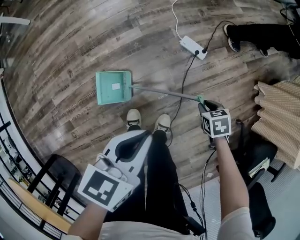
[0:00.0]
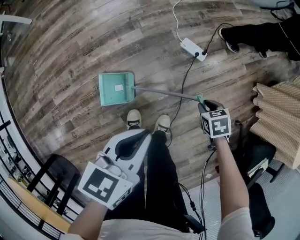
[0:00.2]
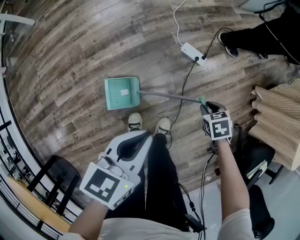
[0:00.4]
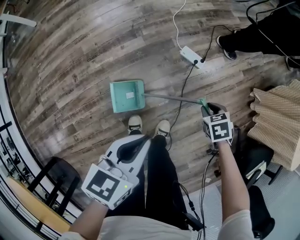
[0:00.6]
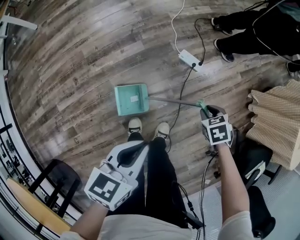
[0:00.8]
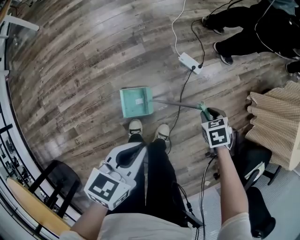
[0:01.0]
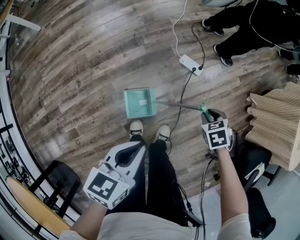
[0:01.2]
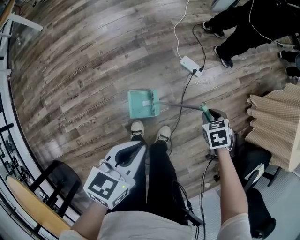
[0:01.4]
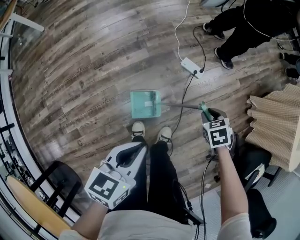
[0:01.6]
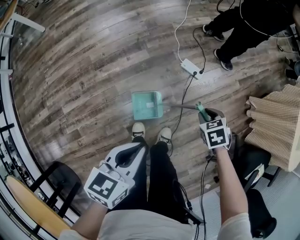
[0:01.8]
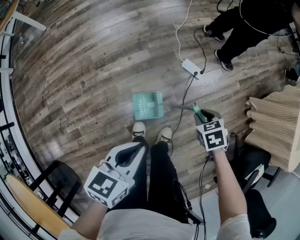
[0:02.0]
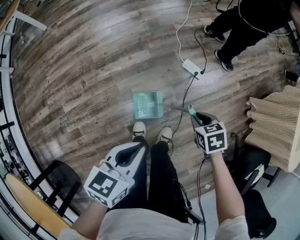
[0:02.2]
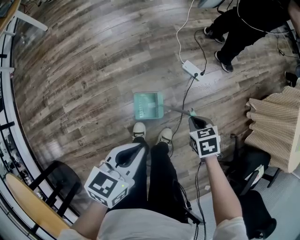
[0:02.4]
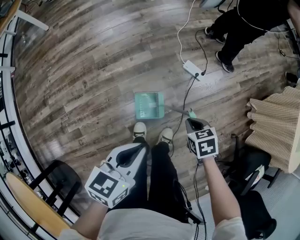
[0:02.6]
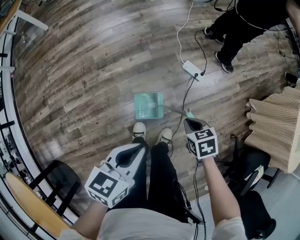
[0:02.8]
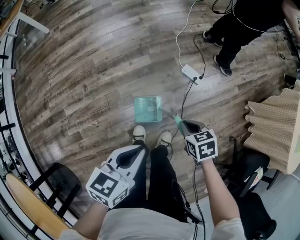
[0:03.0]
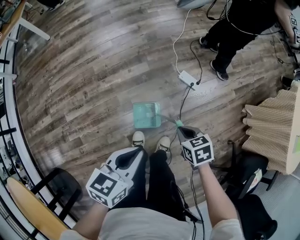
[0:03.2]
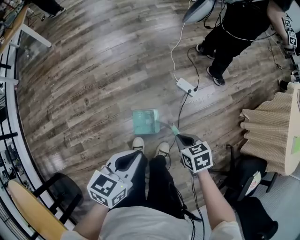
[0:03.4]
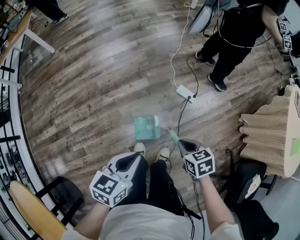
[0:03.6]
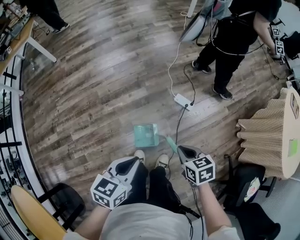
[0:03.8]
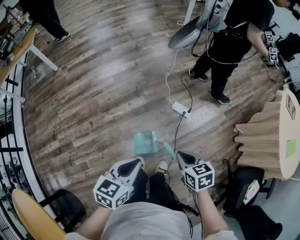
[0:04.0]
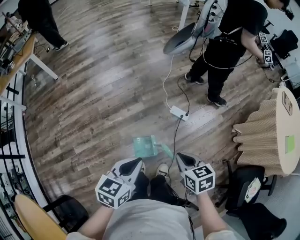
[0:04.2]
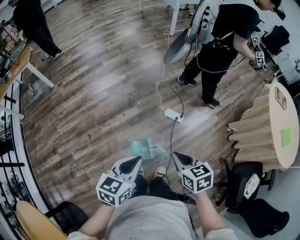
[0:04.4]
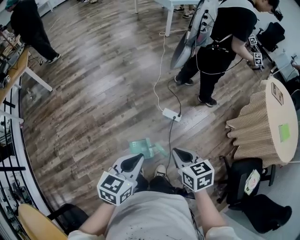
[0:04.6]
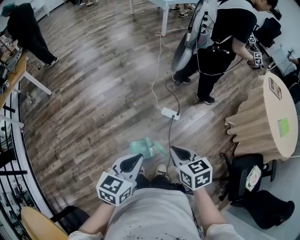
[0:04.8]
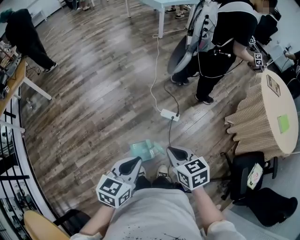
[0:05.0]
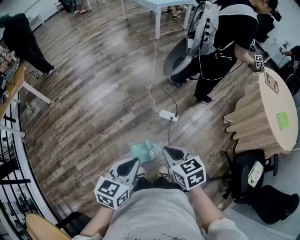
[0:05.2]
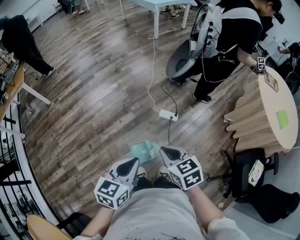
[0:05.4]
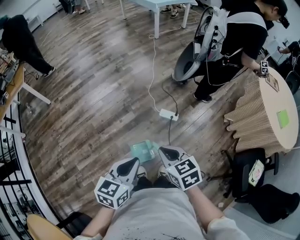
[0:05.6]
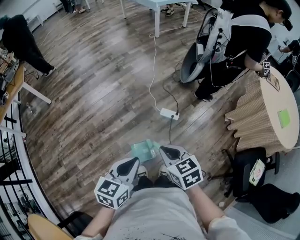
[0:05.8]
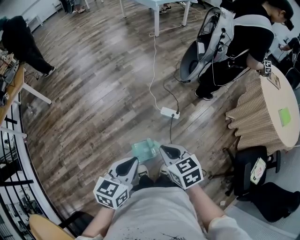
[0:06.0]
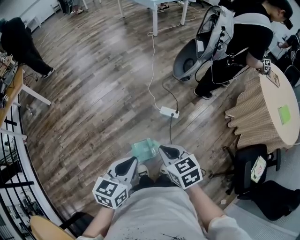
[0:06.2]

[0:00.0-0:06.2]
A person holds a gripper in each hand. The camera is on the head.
0:00.0 to 0:01.6: The left gripper ends up about 10 cm from where it was. The right gripper travels upward by about 15 cm.
0:01.6 to 0:03.2: The right gripper shifts roughly 15 cm to the left, backward and upward, changes its angle by some 20 degrees, and closes up.
0:03.2 to 0:04.6: The left gripper travels upward by approximately 15 cm, while the right gripper goes approximately 25 cm upward, and turns by some 20 degrees.
0:04.6 to 0:06.2: The grippers move only a little.

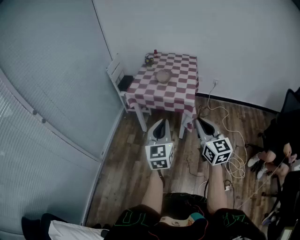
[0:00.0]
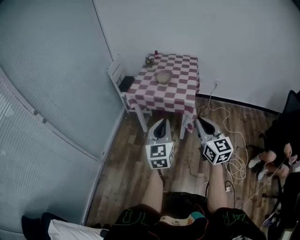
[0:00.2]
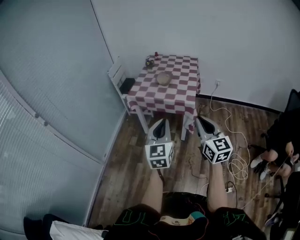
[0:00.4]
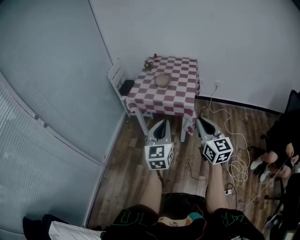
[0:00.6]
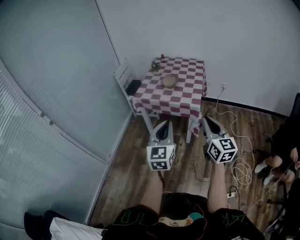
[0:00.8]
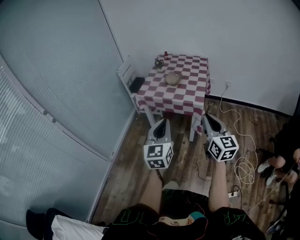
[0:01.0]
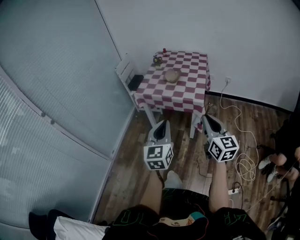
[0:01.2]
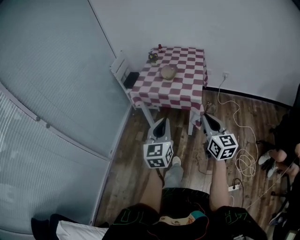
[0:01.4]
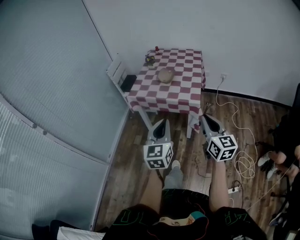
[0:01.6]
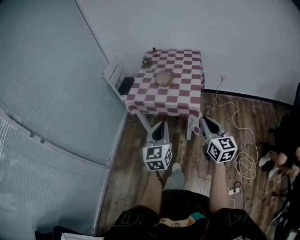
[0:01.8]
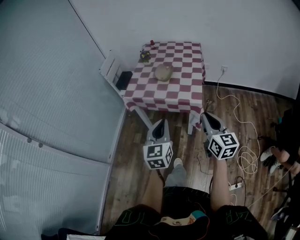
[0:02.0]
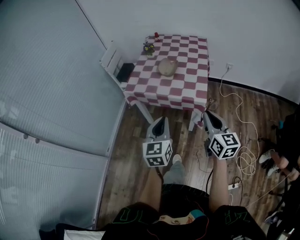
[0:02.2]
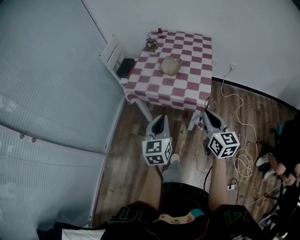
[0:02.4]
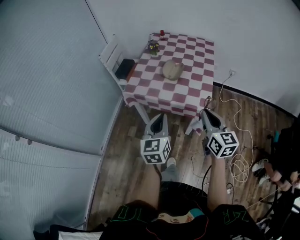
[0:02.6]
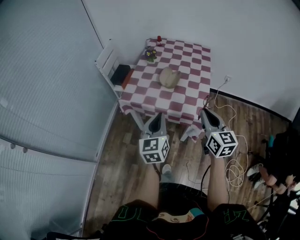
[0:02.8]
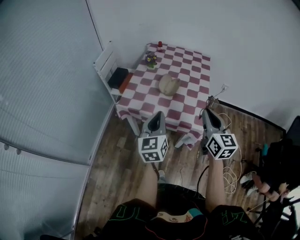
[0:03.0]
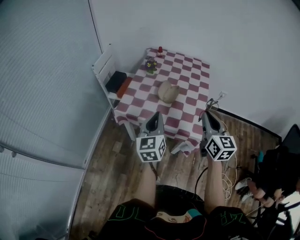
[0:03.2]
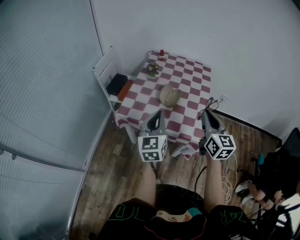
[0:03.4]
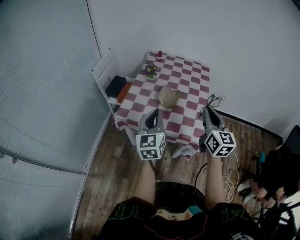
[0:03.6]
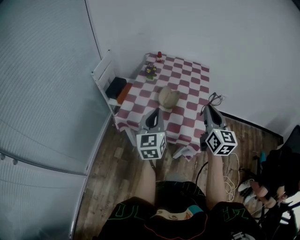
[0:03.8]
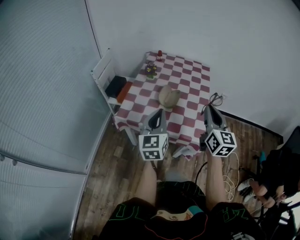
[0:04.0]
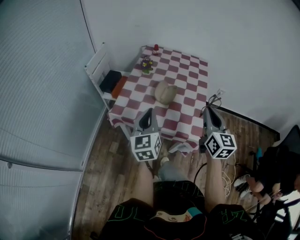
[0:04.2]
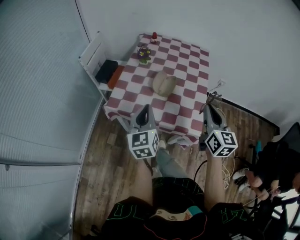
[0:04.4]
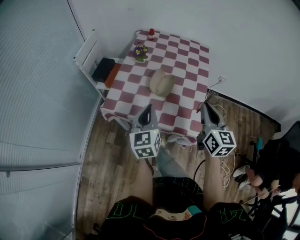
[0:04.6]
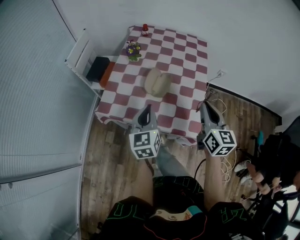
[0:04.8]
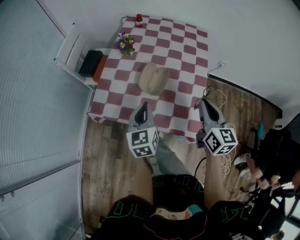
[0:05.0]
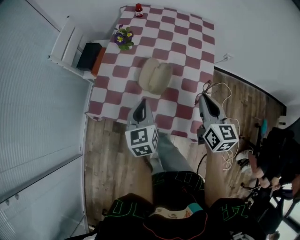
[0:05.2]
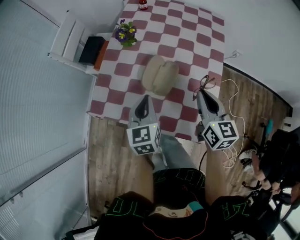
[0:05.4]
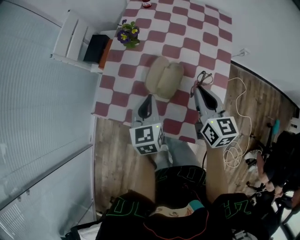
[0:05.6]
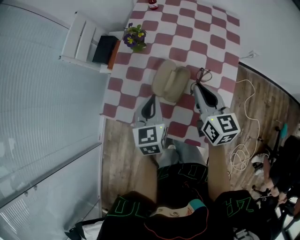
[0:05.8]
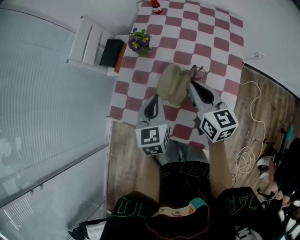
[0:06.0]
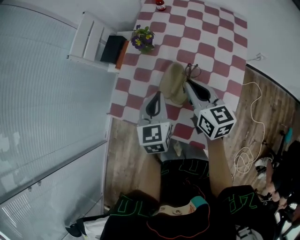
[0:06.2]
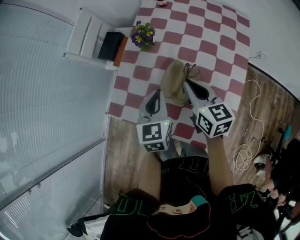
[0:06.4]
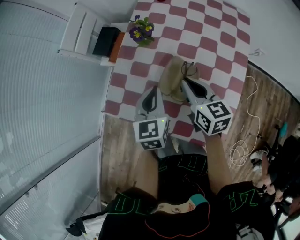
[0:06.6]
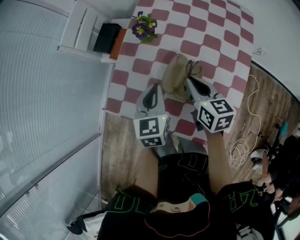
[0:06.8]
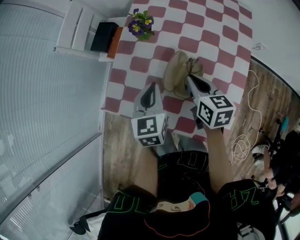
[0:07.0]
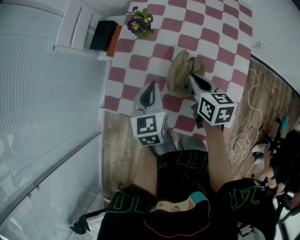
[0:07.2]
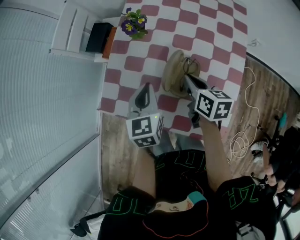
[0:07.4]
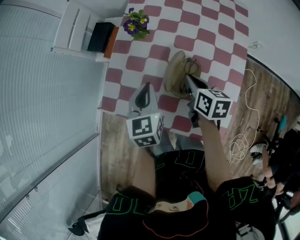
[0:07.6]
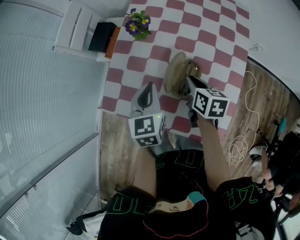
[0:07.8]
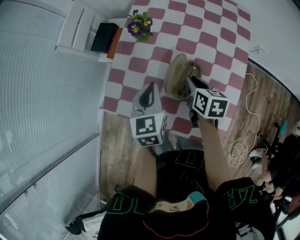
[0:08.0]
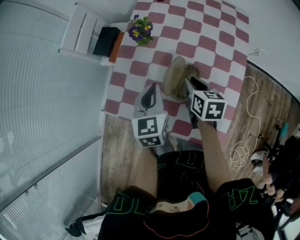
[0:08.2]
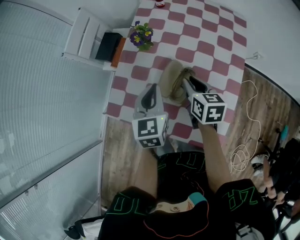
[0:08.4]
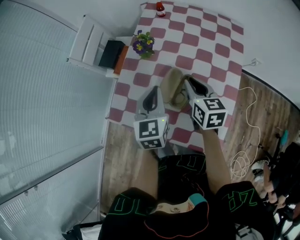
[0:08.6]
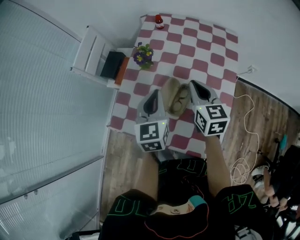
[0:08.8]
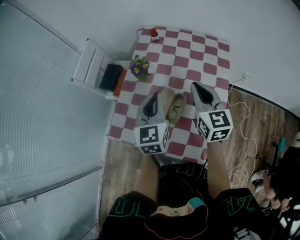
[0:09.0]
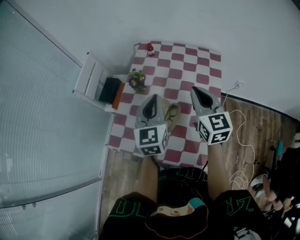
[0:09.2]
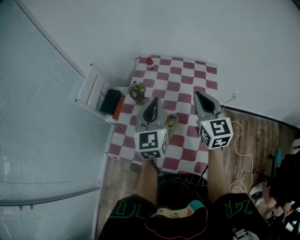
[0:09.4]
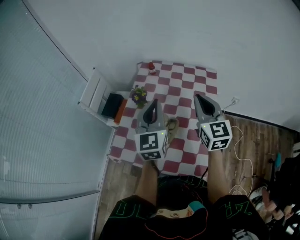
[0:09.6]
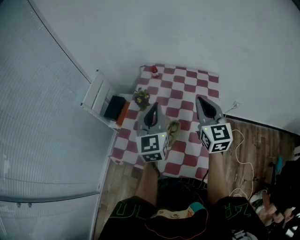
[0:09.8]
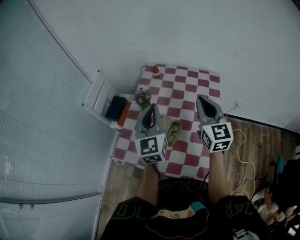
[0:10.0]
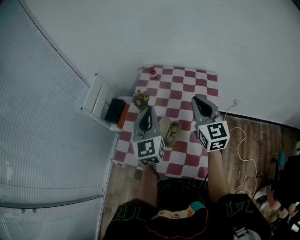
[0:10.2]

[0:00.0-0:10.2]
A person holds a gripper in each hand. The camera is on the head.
0:00.0 to 0:01.4: The right gripper moves forward, approximately 5 cm.
0:01.4 to 0:03.0: The two grippers go roughly 30 cm forward.
0:03.0 to 0:04.4: Both grippers move forward, about 10 cm.
0:04.4 to 0:05.8: Both grippers move forward and downward, roughly 20 cm. The right gripper swivels some 20 degrees; the left gripper rotates approximately 20 degrees.
0:05.8 to 0:07.2: The right gripper shifts about 10 cm downward and to the left, and rotates about 20 degrees, while the left gripper moves approximately 5 cm.
0:07.2 to 0:08.8: Both grippers move upward, about 10 cm. The right gripper changes its angle by roughly 20 degrees.
0:08.8 to 0:10.2: Both grippers move upward, approximately 15 cm. The left gripper swivels about 20 degrees. The right gripper changes its angle by about 20 degrees.

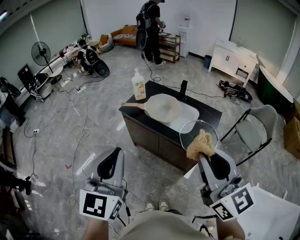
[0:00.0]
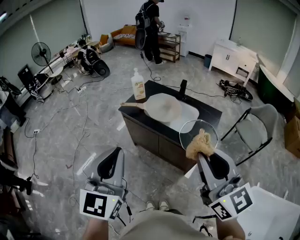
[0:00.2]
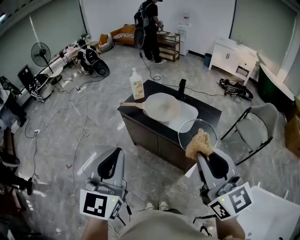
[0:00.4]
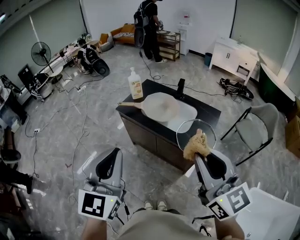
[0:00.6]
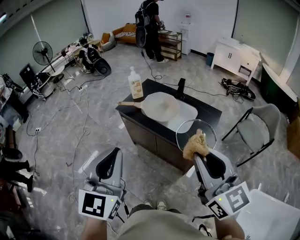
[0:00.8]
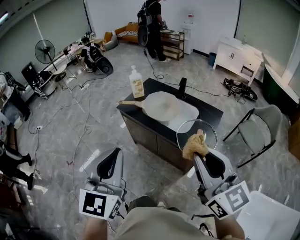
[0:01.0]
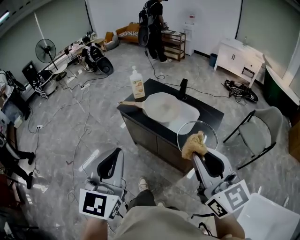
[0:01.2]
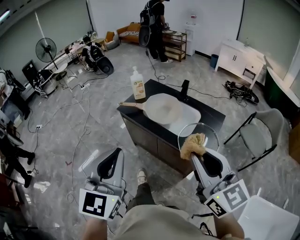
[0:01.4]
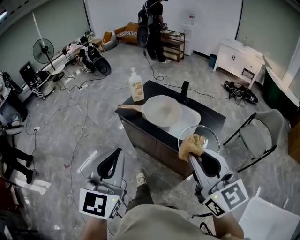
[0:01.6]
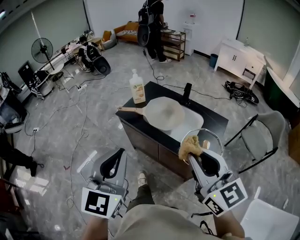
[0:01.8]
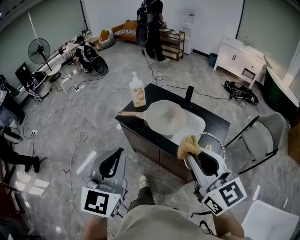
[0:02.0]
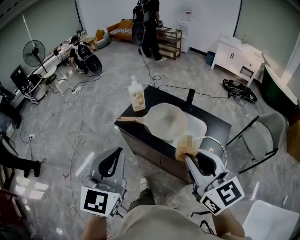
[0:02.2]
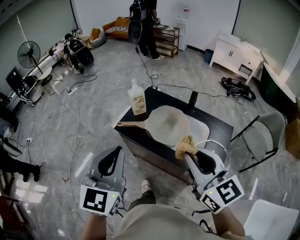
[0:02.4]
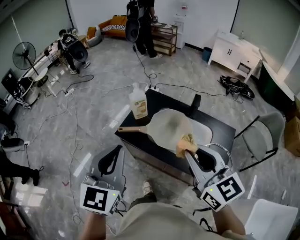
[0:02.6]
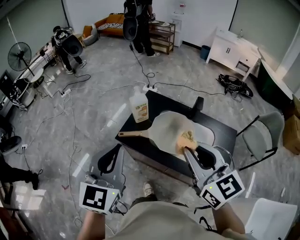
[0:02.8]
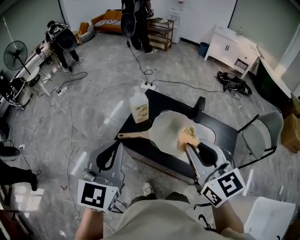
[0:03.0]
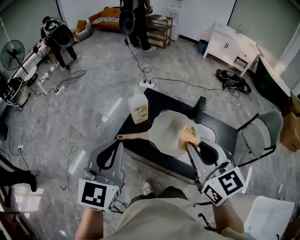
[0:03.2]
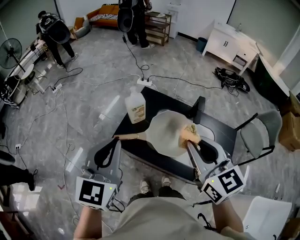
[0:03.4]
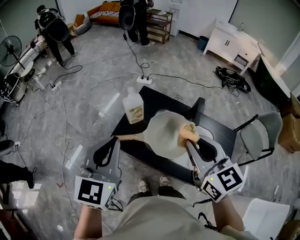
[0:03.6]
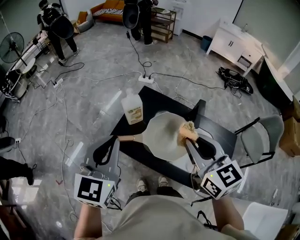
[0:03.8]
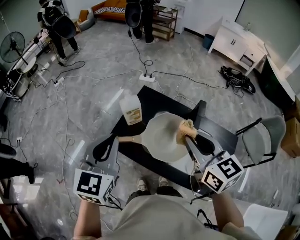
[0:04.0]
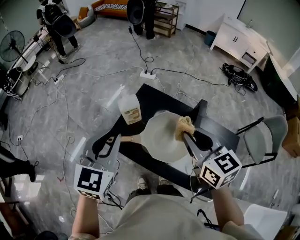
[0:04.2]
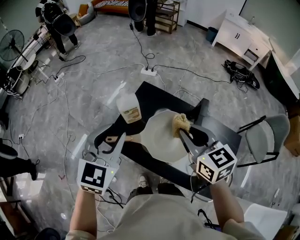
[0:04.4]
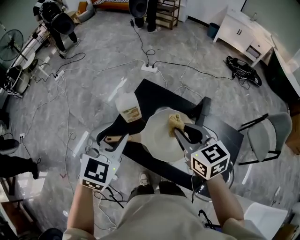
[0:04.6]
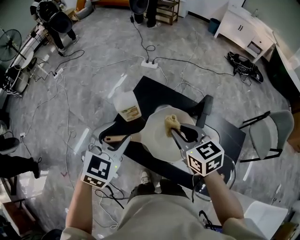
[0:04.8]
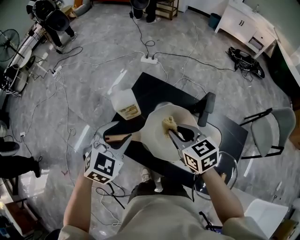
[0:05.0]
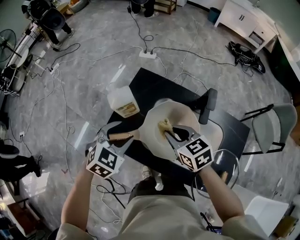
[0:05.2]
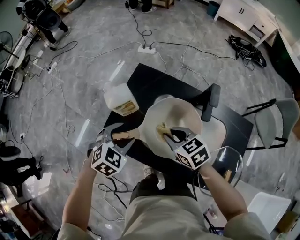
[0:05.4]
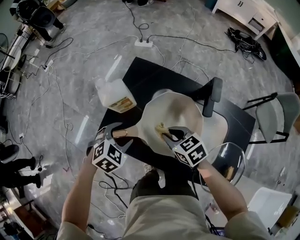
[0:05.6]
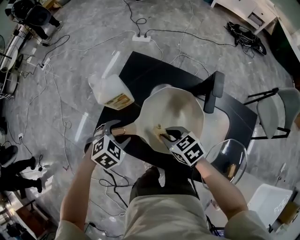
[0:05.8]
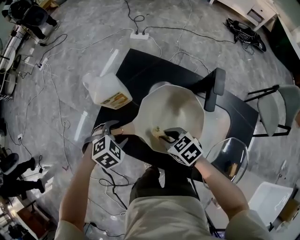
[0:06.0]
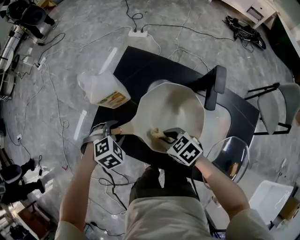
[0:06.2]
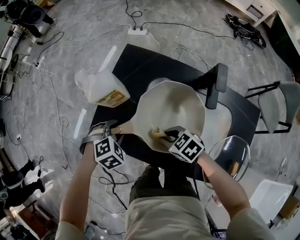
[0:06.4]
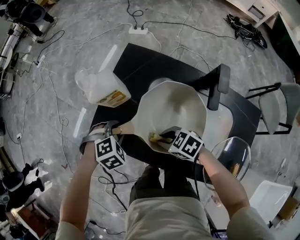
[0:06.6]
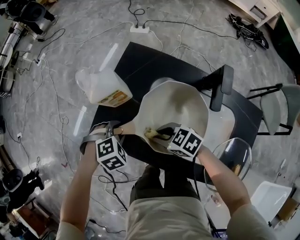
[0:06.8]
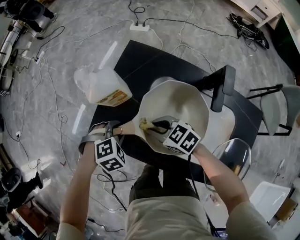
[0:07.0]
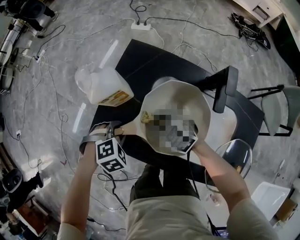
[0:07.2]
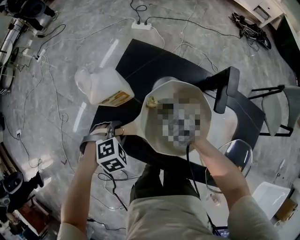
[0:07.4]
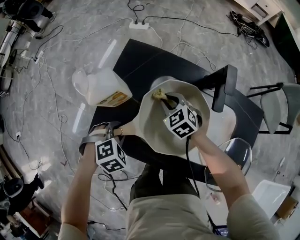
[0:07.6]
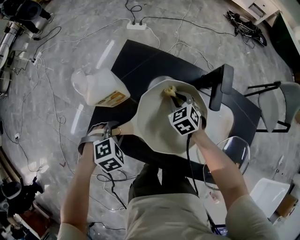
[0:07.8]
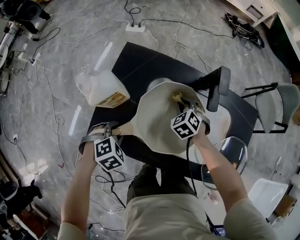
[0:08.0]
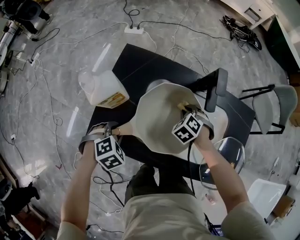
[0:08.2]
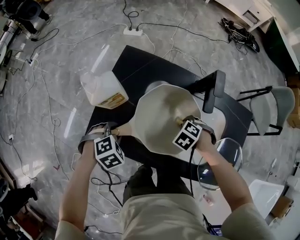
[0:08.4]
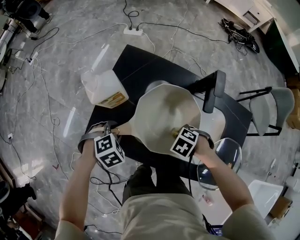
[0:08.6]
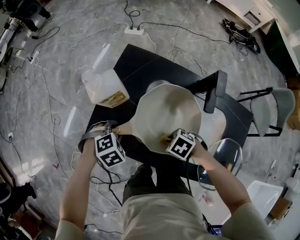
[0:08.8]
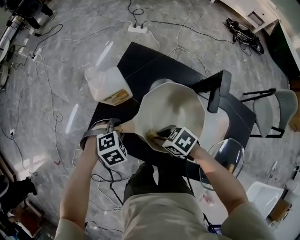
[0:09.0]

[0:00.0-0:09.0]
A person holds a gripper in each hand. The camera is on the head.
0:00.0 to 0:01.6: The right gripper moves forward and downward, approximately 10 cm, while the left gripper heads forward, covering approximately 5 cm.
0:01.6 to 0:03.0: Both grippers travel together forward, roughly 35 cm.
0:03.0 to 0:04.4: The right gripper travels forward and downward by about 20 cm; the left gripper goes about 15 cm forward, downward and to the right, and opens up.
0:04.4 to 0:06.0: Both grippers move downward, about 35 cm. The right gripper turns by about 40 degrees. The left gripper angles its fingers downward, by about 50 degrees, and opens.
0:06.0 to 0:07.6: The right gripper changes place by approximately 15 cm, and changes its angle by some 30 degrees; the left gripper closes its fingers.
0:07.6 to 0:09.0: The right gripper ends up about 15 cm from where it was, and swivels some 40 degrees.
